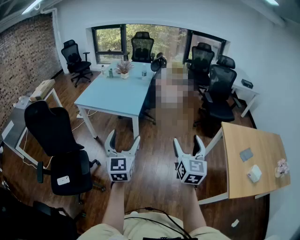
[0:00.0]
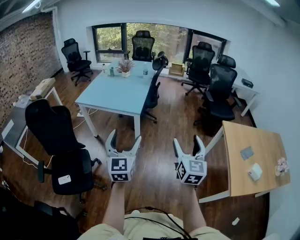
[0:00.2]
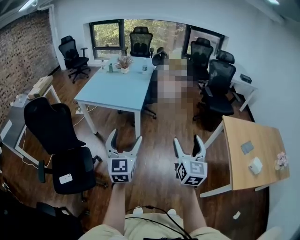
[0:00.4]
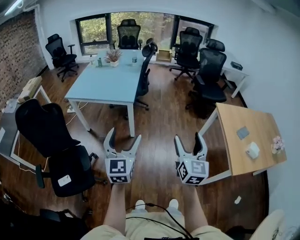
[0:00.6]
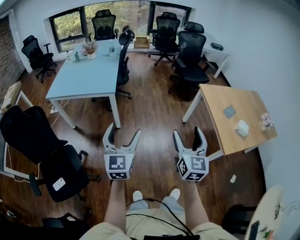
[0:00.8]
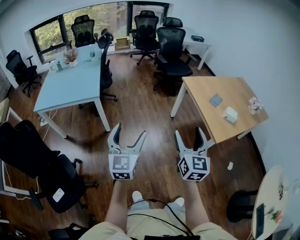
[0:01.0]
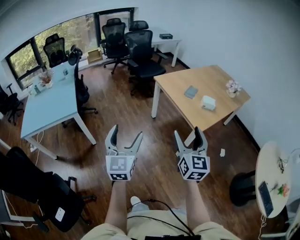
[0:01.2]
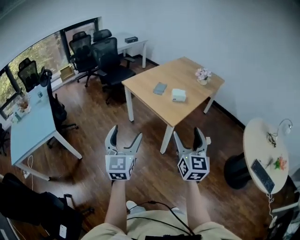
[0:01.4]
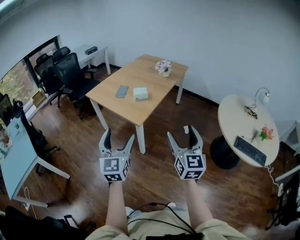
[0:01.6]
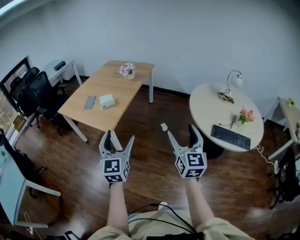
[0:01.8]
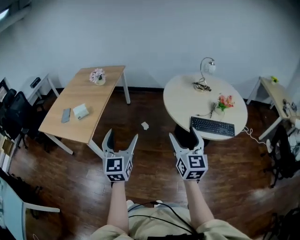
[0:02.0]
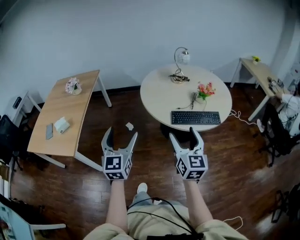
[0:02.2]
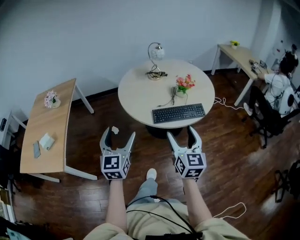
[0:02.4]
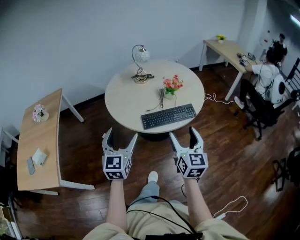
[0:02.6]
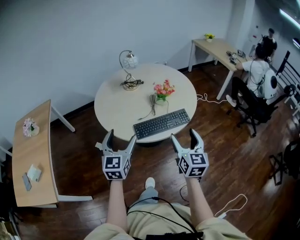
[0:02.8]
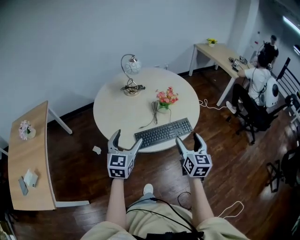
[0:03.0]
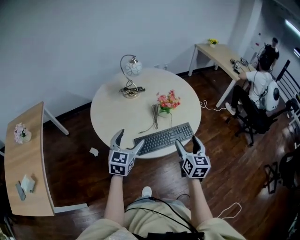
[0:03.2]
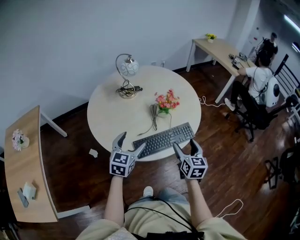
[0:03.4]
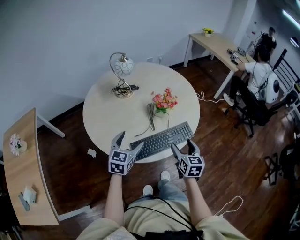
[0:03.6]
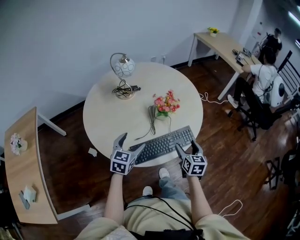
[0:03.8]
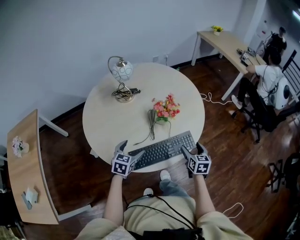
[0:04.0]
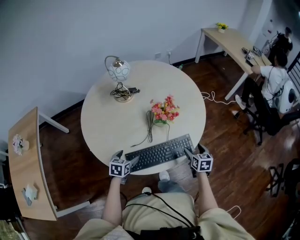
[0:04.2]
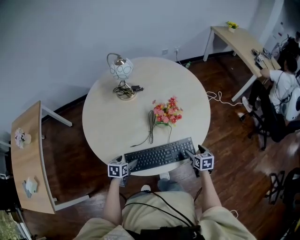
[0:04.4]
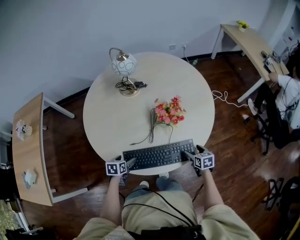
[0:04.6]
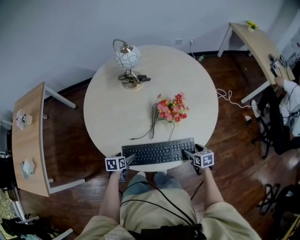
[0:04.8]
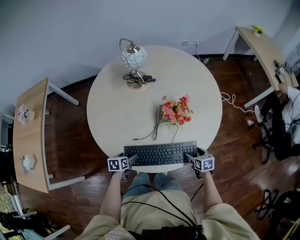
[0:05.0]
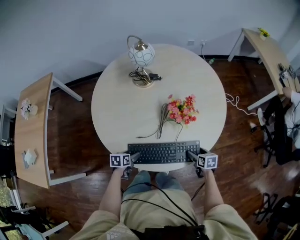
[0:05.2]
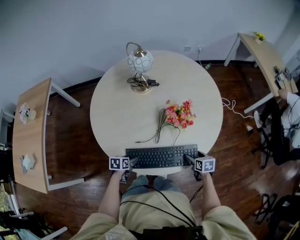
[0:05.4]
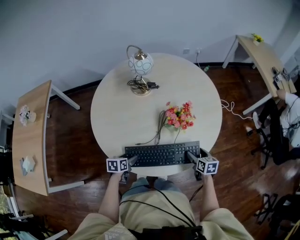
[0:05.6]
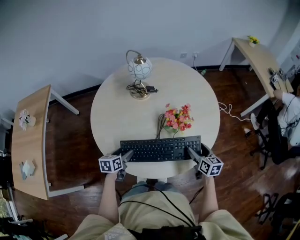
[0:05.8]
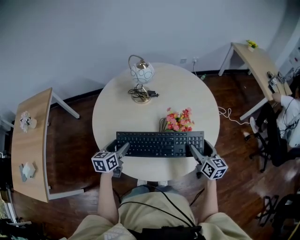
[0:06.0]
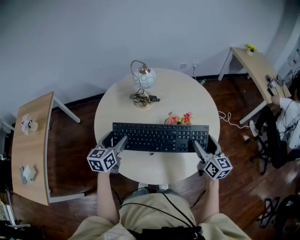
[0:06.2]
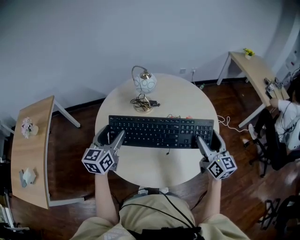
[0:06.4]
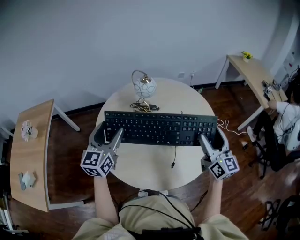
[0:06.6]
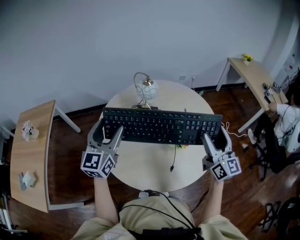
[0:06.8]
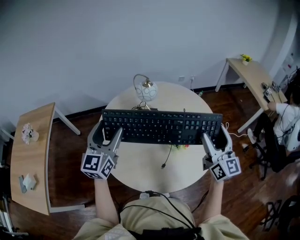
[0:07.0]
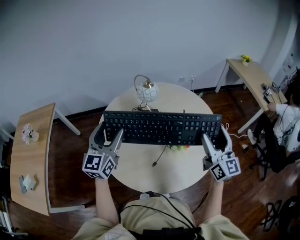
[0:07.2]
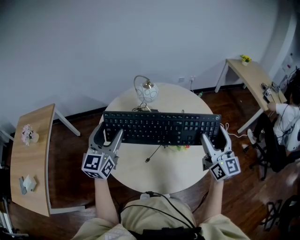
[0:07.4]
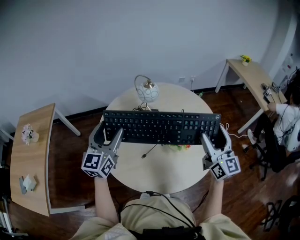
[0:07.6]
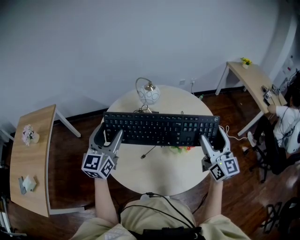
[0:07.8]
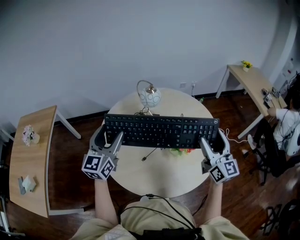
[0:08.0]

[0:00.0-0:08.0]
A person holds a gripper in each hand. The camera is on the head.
0:00.0 to 0:01.6: Both grippers are carried roughly 60 cm. The left gripper changes its angle by about 70 degrees, while the right gripper changes its angle by about 60 degrees.
0:01.6 to 0:03.2: Both grippers are carried some 80 cm. The right gripper changes its angle by approximately 60 degrees, while the left gripper turns by about 70 degrees.
0:03.2 to 0:04.8: The left gripper is displaced downward by some 30 cm, and points its fingers approximately 40 degrees further downward. Meanwhile the right gripper moves downward and forward, approximately 40 cm, and points its fingers roughly 40 degrees further downward.
0:04.8 to 0:06.4: The grippers both shift upward by some 40 cm. The left gripper tips its fingers upward by some 50 degrees; the right gripper angles its fingers upward, by roughly 50 degrees.
0:06.4 to 0:08.0: Both grippers travel together upward, approximately 10 cm.

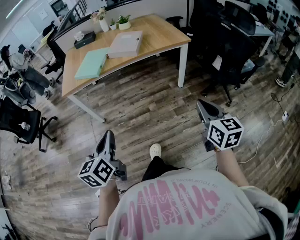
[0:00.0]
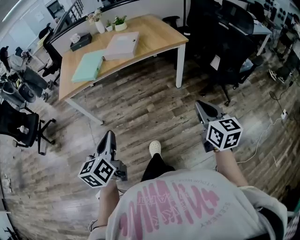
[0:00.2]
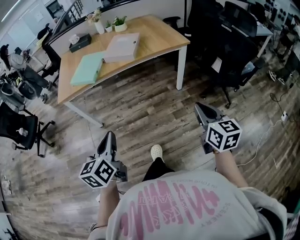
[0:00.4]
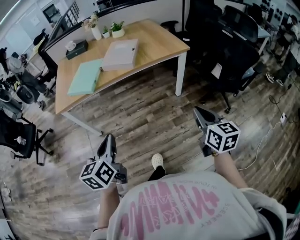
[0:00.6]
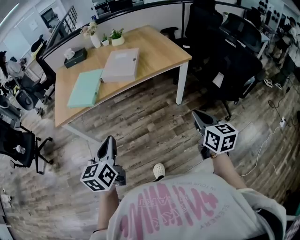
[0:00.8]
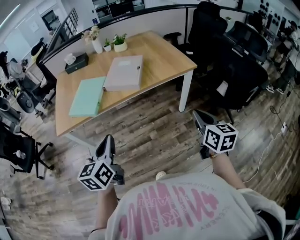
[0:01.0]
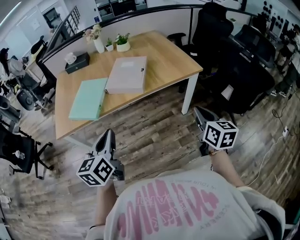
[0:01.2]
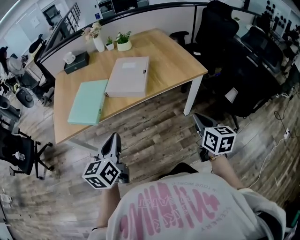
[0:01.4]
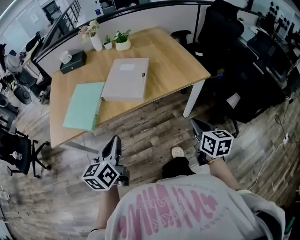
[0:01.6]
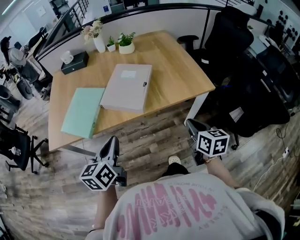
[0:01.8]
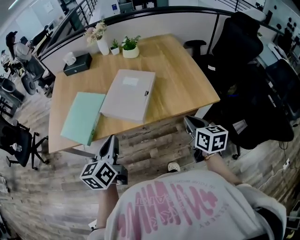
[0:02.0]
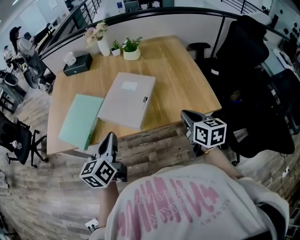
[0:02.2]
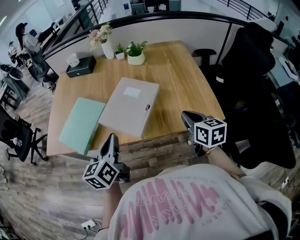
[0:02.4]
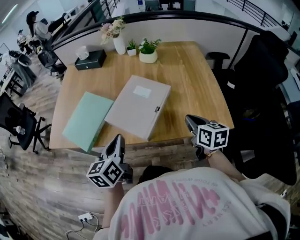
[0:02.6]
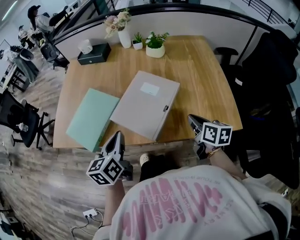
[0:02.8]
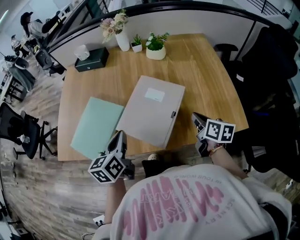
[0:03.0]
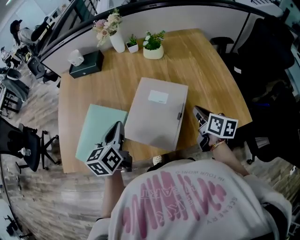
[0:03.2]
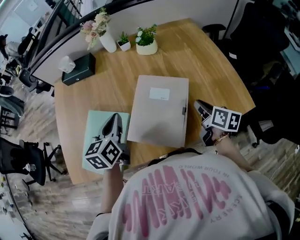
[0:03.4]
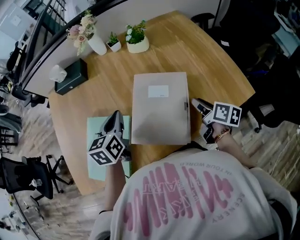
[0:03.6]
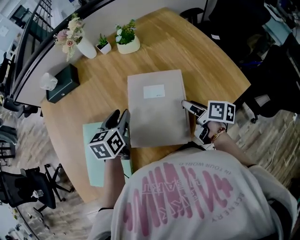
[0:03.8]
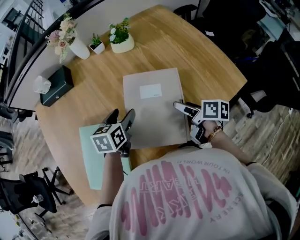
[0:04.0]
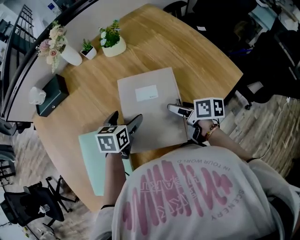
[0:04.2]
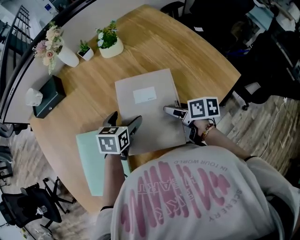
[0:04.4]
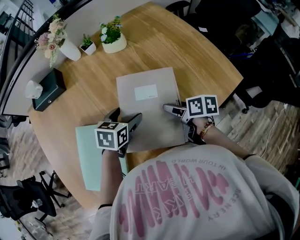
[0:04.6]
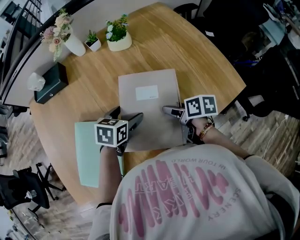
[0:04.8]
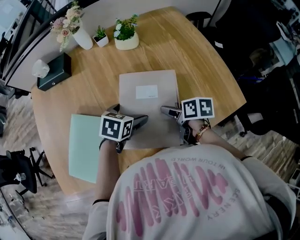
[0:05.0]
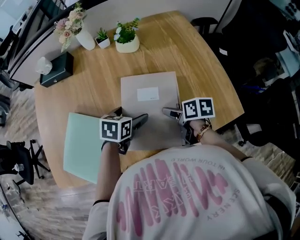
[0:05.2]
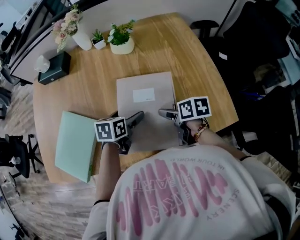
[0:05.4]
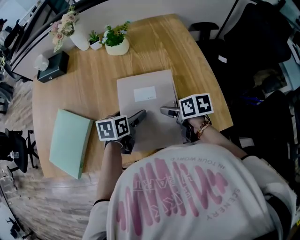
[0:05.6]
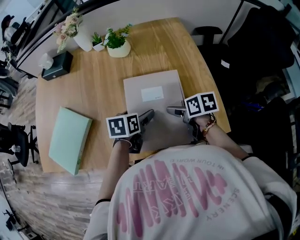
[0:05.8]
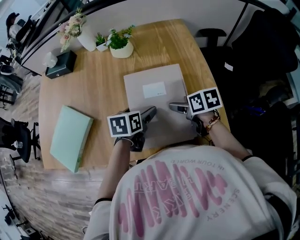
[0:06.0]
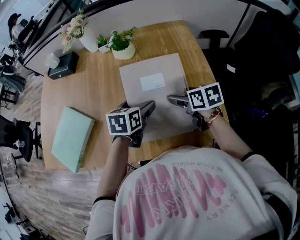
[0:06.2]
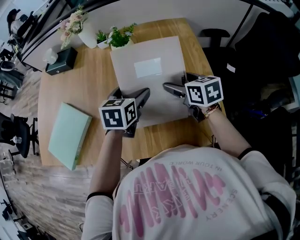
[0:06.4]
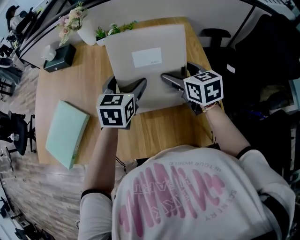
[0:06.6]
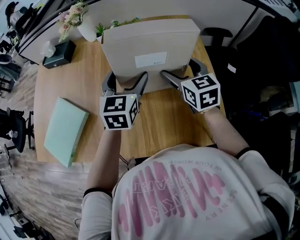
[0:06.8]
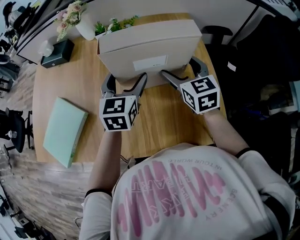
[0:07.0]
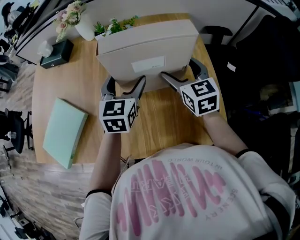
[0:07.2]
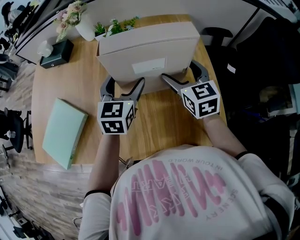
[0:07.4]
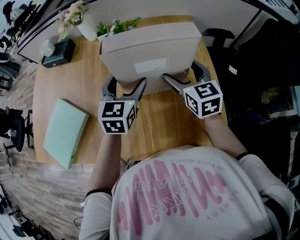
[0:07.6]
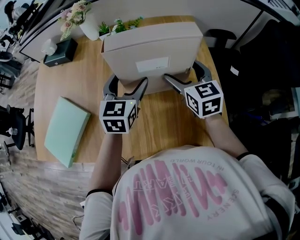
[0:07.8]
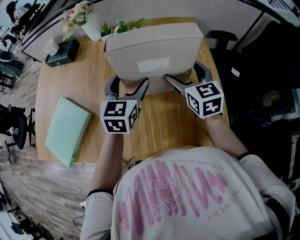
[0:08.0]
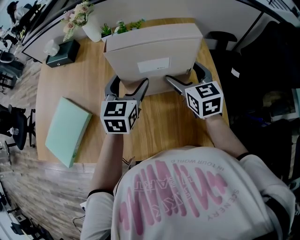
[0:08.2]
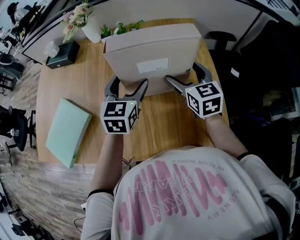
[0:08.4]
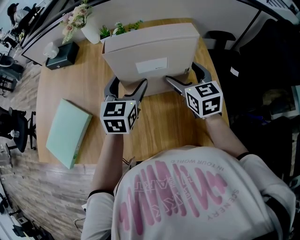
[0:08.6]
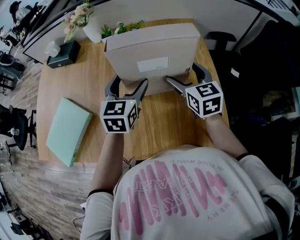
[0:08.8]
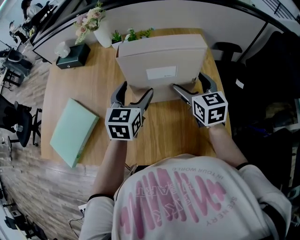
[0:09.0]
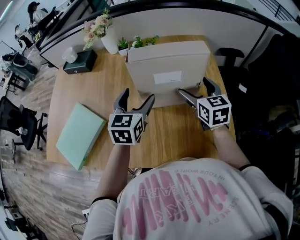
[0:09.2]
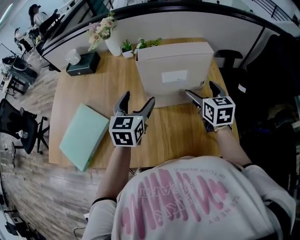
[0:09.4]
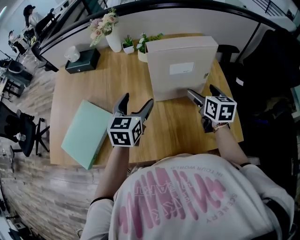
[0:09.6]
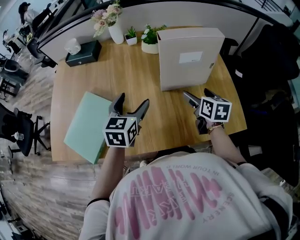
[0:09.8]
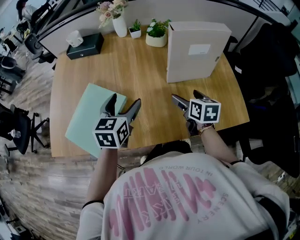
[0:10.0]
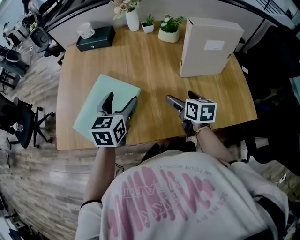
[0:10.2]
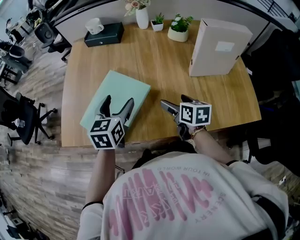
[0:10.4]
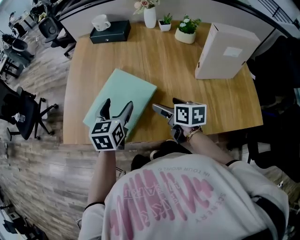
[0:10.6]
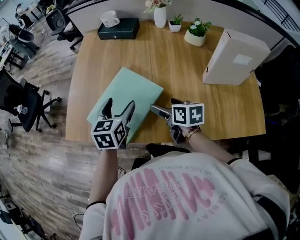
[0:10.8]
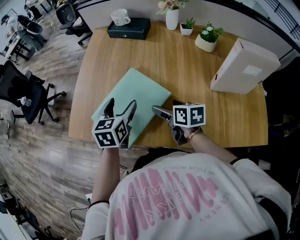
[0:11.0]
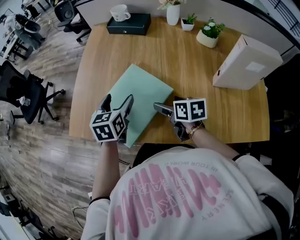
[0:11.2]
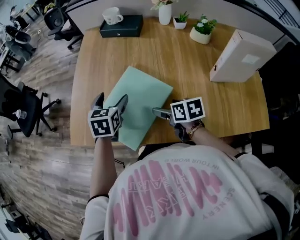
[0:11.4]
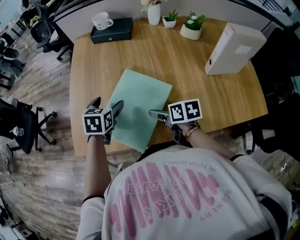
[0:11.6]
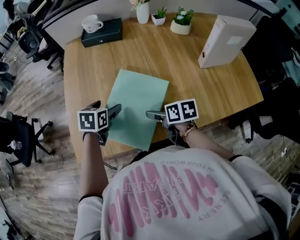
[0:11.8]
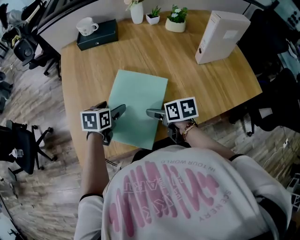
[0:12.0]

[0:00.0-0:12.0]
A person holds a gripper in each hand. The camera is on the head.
0:00.0 to 0:01.6: The two grippers go about 40 cm forward.
0:01.6 to 0:03.0: The two grippers go roughly 30 cm forward. The right gripper turns by some 20 degrees.
0:03.0 to 0:04.4: The left gripper moves about 20 cm, changes its angle by approximately 60 degrees, and opens up. Meanwhile the right gripper shifts by approximately 10 cm, changes its angle by some 30 degrees, and opens its fingers.
0:04.4 to 0:06.0: The left gripper ends up about 20 cm from where it was, and swivels approximately 30 degrees. Meanwhile the right gripper shifts by approximately 20 cm, and turns by roughly 40 degrees.
0:06.0 to 0:07.6: The right gripper is displaced forward and upward by approximately 15 cm, and rotates some 50 degrees, while the left gripper goes some 15 cm upward and forward, and swivels about 40 degrees.
0:07.6 to 0:09.0: The grippers stay close to where they were, moving slightly.
0:09.0 to 0:10.4: The two grippers go about 40 cm to the left and backward. The right gripper turns by some 30 degrees.
0:10.4 to 0:12.0: The right gripper ends up approximately 20 cm from where it was. Meanwhile the left gripper changes place by roughly 20 cm, and changes its angle by some 30 degrees.

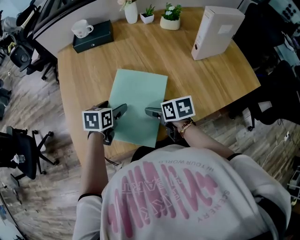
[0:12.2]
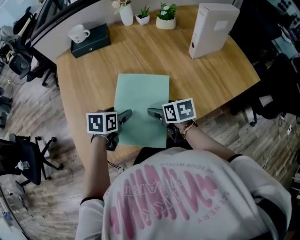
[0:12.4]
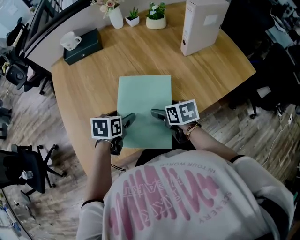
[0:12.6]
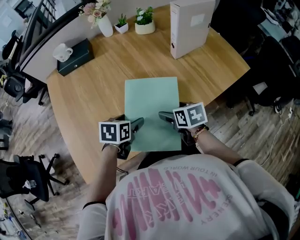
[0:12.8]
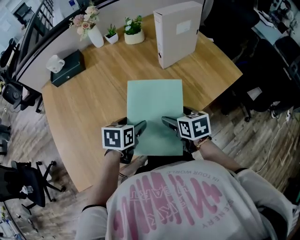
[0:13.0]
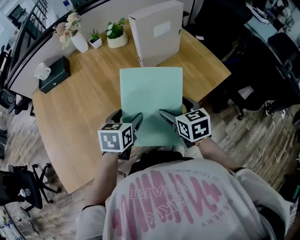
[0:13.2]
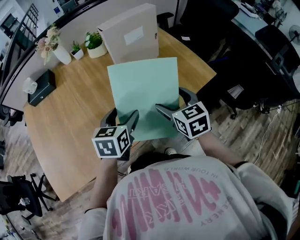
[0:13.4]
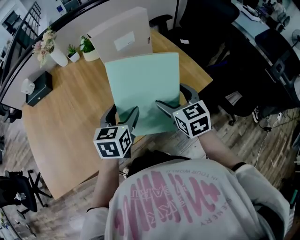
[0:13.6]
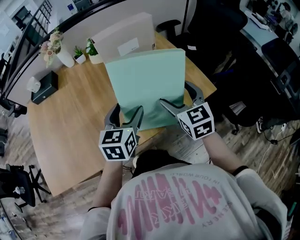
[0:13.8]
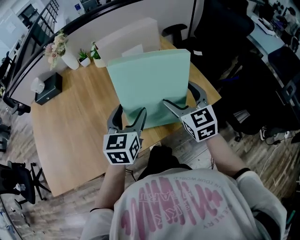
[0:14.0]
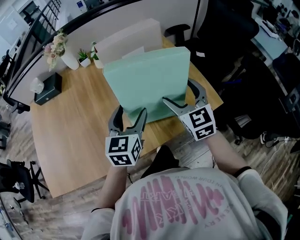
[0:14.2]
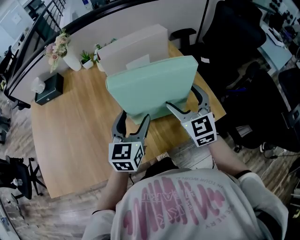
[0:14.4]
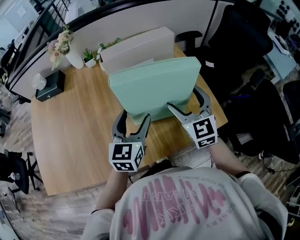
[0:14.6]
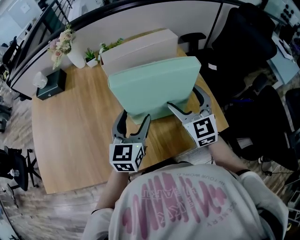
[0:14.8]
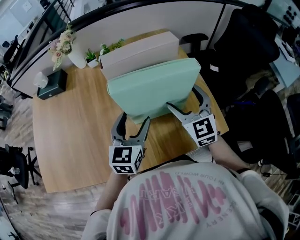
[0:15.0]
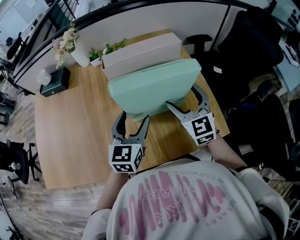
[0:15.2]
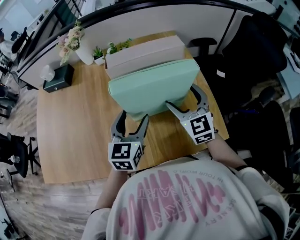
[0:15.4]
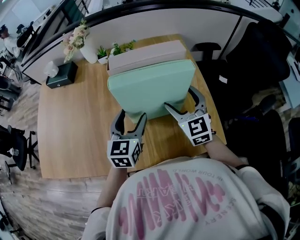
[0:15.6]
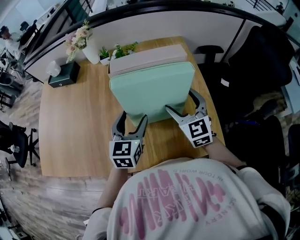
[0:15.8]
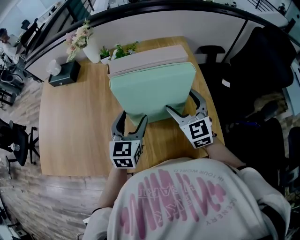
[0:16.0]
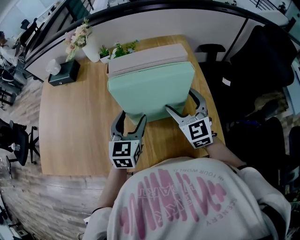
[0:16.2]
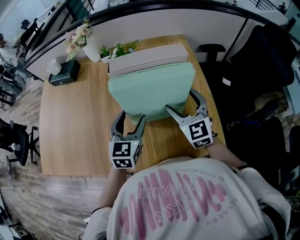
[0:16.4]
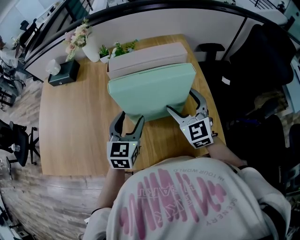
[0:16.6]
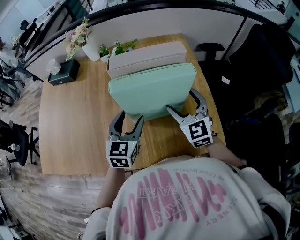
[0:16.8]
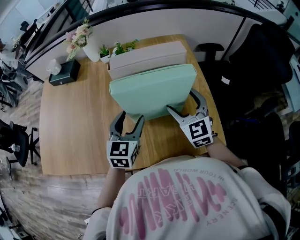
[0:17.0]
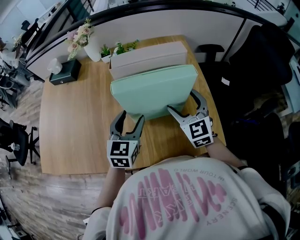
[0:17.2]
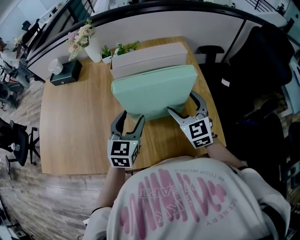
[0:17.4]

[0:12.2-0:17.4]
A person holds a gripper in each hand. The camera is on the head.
0:12.2 to 0:14.0: The two grippers travel together, to the right, about 50 cm. The left gripper swivels about 30 degrees, while the right gripper rotates roughly 50 degrees.
0:14.0 to 0:15.6: The right gripper shifts some 15 cm forward, while the left gripper moves forward, about 10 cm.
0:15.6 to 0:17.4: The grippers move only a little.
